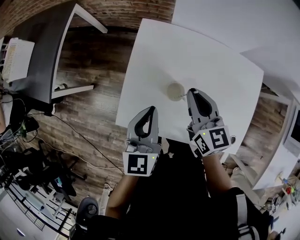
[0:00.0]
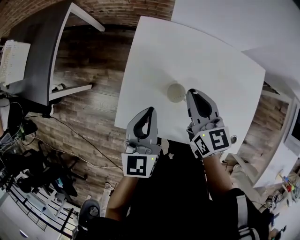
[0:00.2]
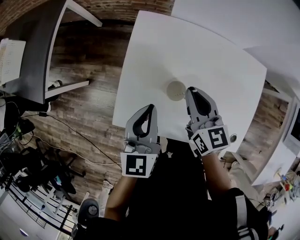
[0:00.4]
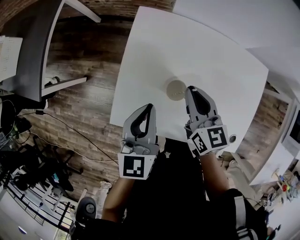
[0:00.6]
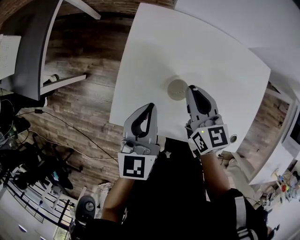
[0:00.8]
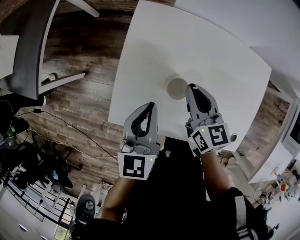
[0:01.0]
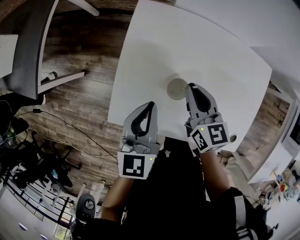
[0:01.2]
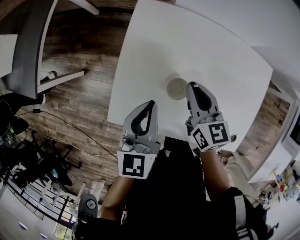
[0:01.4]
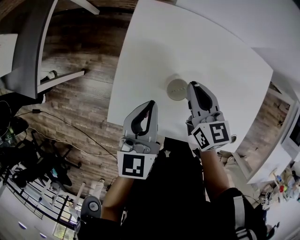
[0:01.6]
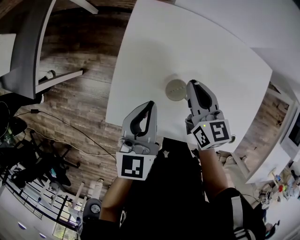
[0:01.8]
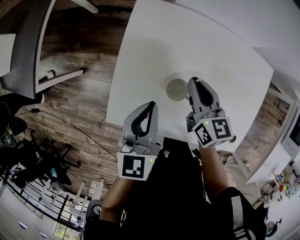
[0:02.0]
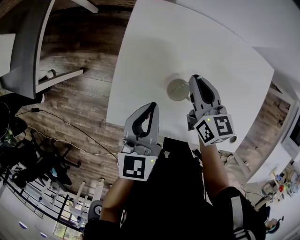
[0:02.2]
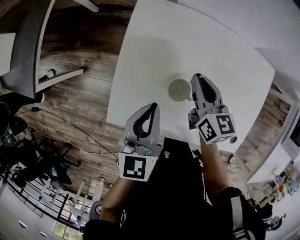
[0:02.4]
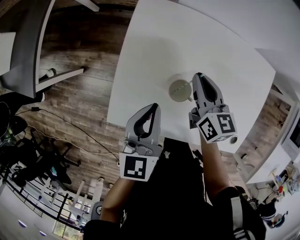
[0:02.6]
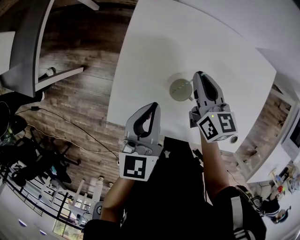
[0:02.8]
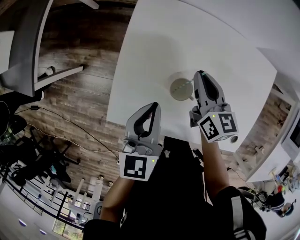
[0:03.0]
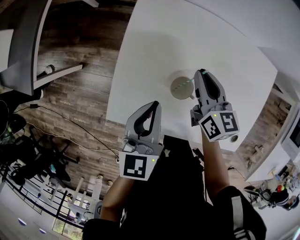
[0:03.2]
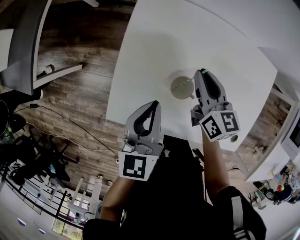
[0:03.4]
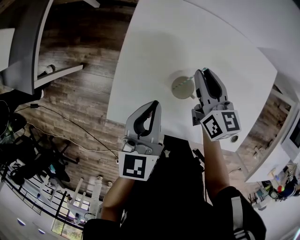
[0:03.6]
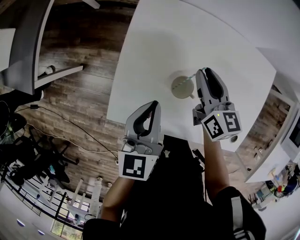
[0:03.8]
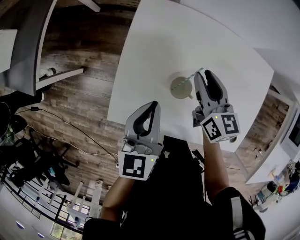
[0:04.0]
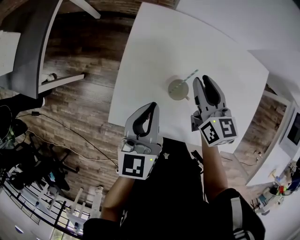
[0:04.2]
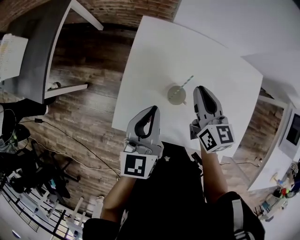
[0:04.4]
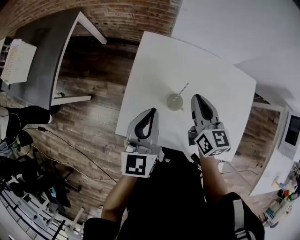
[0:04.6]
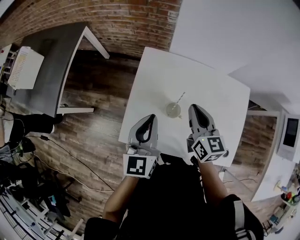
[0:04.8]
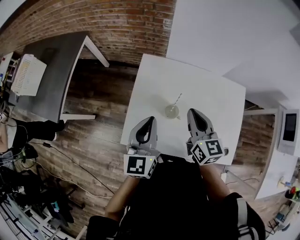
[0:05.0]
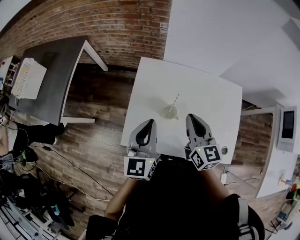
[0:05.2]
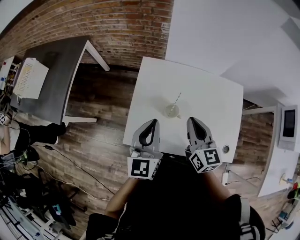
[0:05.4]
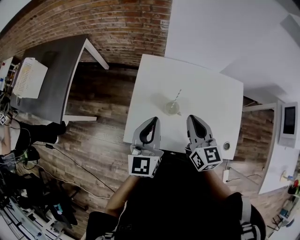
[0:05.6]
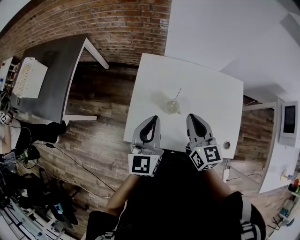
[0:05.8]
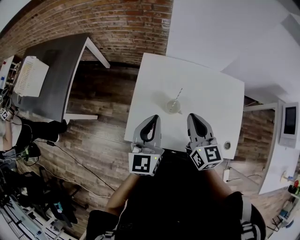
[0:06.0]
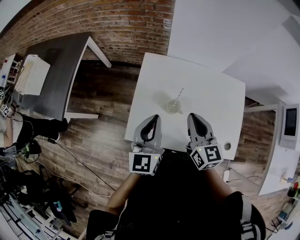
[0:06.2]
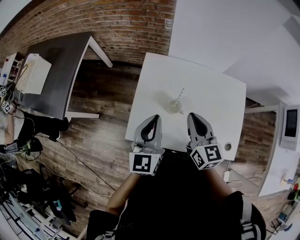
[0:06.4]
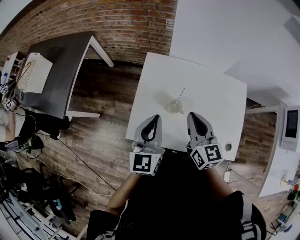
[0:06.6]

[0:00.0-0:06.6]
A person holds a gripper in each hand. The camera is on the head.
0:00.0 to 0:01.6: The right gripper shifts about 10 cm downward; the left gripper moves downward, about 5 cm.
0:01.6 to 0:03.2: The grippers make only small movements.
0:03.2 to 0:05.0: The left gripper travels upward by about 15 cm; the right gripper shifts about 15 cm upward and backward, and opens, then closes again.
0:05.0 to 0:06.6: The right gripper travels backward by some 5 cm.

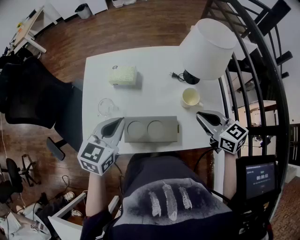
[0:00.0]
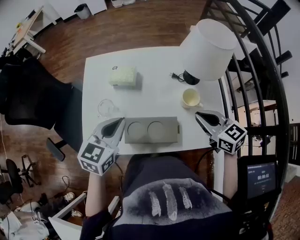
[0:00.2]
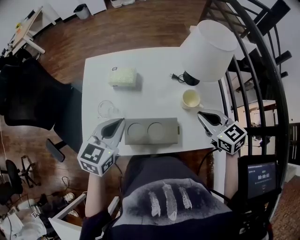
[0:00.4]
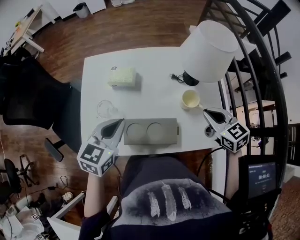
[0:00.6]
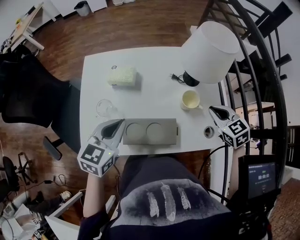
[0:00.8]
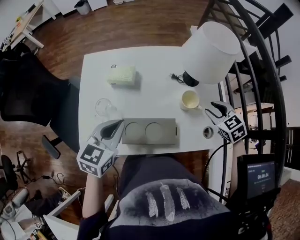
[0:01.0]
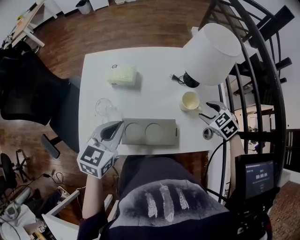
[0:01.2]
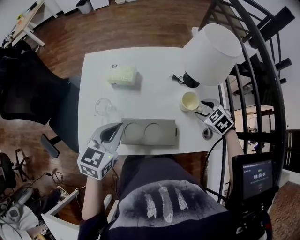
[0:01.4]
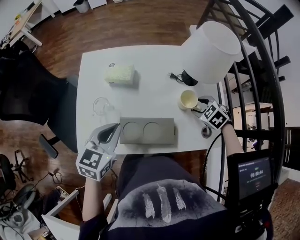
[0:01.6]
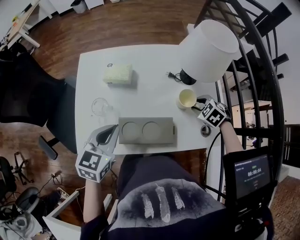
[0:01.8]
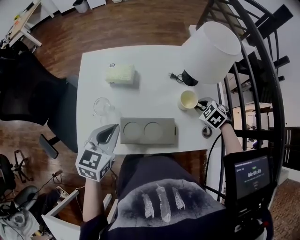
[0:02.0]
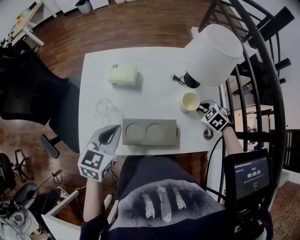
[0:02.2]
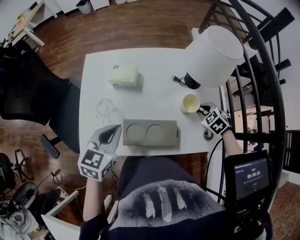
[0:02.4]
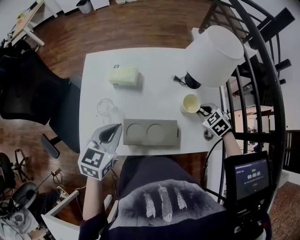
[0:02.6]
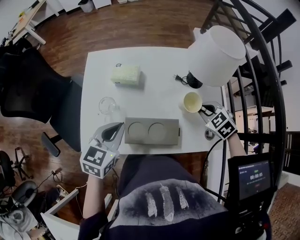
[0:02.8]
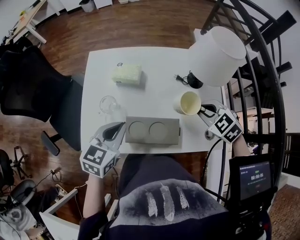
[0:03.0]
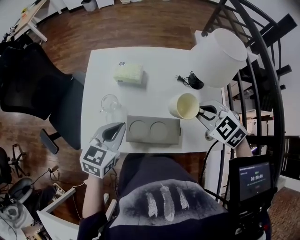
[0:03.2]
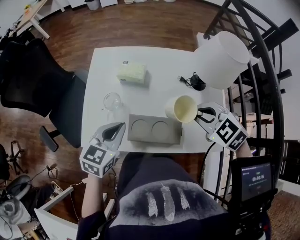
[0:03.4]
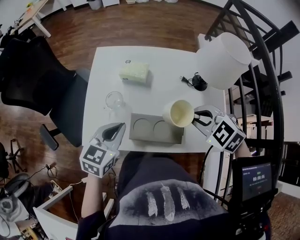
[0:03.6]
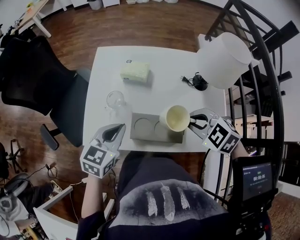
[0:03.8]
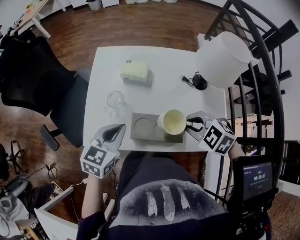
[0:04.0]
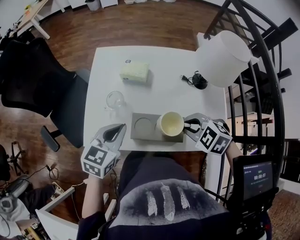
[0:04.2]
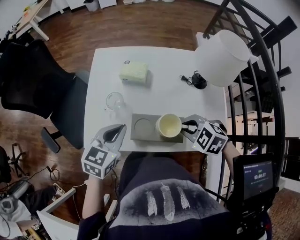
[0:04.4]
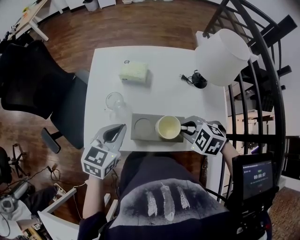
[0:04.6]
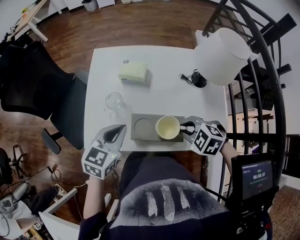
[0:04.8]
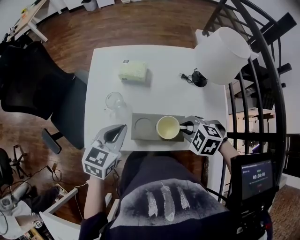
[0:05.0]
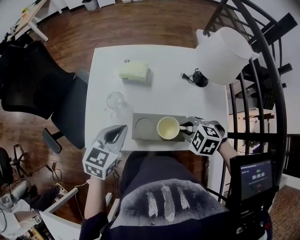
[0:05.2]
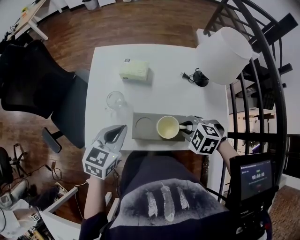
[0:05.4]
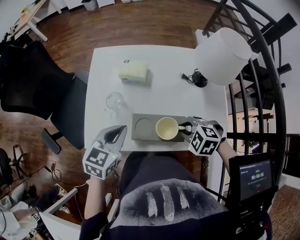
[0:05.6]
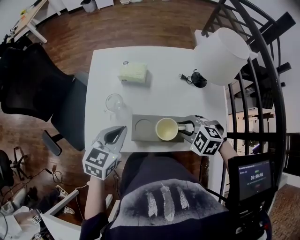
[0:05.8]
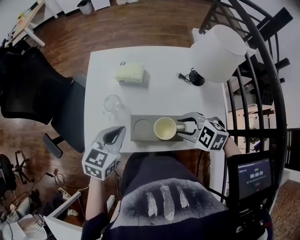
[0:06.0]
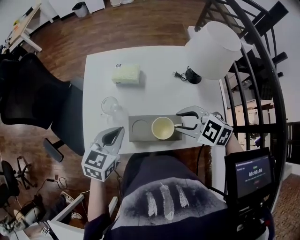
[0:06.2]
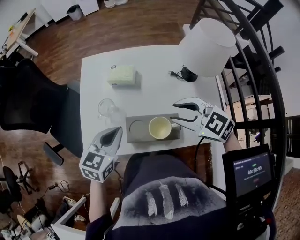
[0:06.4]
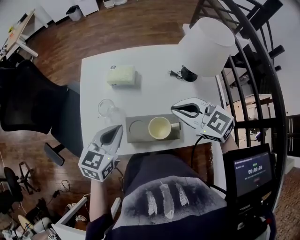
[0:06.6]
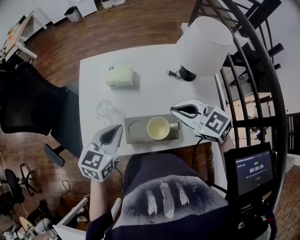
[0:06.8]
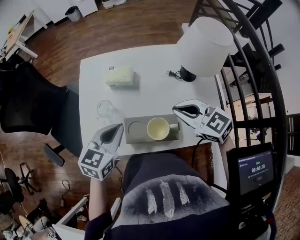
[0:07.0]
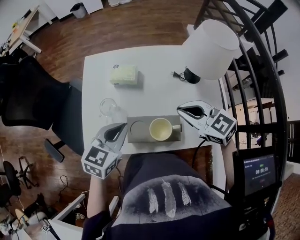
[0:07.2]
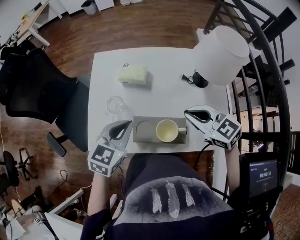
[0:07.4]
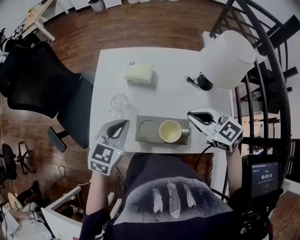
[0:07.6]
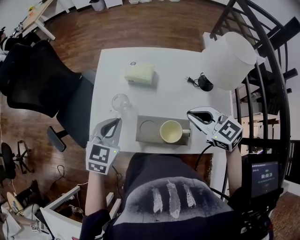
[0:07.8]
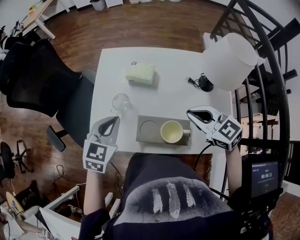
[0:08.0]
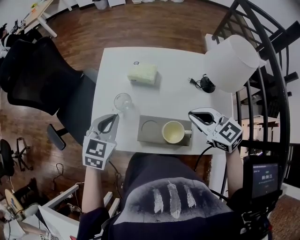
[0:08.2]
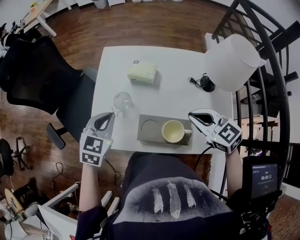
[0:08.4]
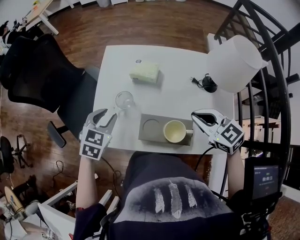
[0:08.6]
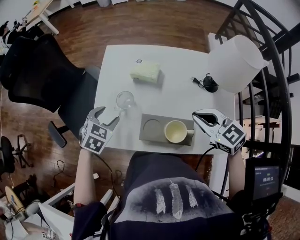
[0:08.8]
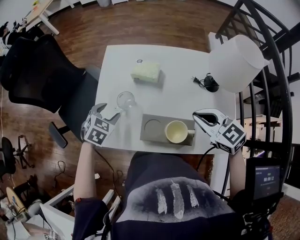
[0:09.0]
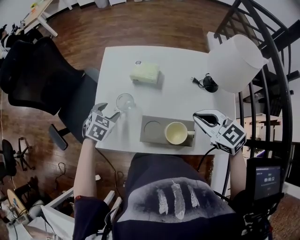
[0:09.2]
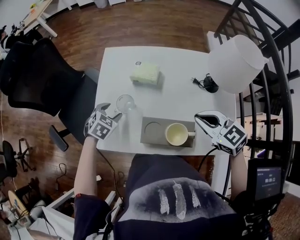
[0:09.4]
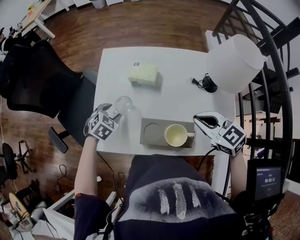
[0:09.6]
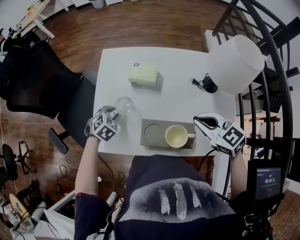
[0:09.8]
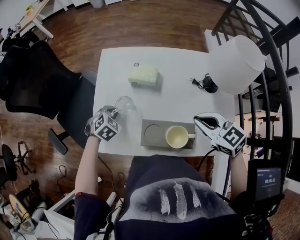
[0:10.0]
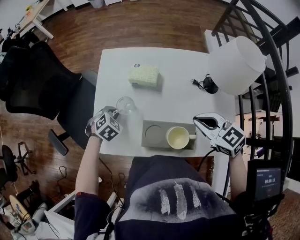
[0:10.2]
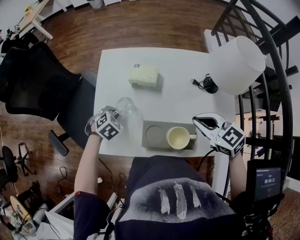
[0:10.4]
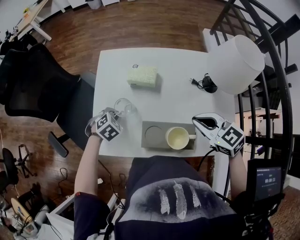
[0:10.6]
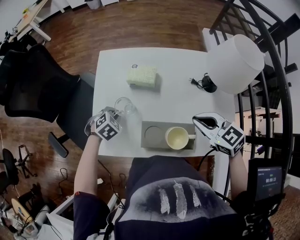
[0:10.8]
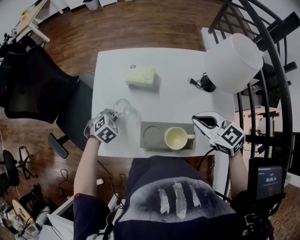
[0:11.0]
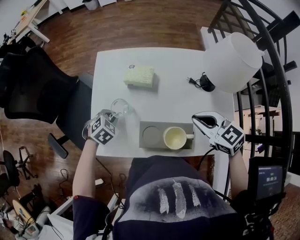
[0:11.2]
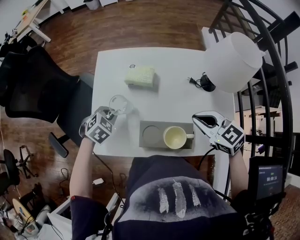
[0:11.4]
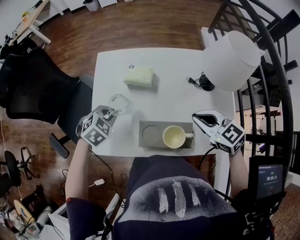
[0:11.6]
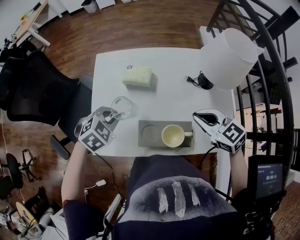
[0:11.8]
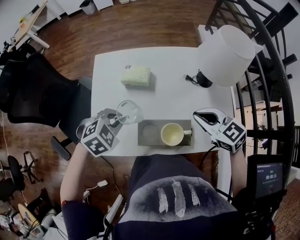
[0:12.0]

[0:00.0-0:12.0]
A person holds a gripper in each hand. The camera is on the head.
0:00.0 to 0:01.6: The right gripper shifts some 15 cm downward and forward, points its fingers some 40 degrees further downward, and opens.
0:01.6 to 0:03.0: The right gripper goes about 15 cm upward and to the left, and closes.
0:03.0 to 0:04.4: The right gripper moves to the left and backward, roughly 15 cm.
0:04.4 to 0:06.0: The right gripper opens.
0:06.0 to 0:07.6: The right gripper is displaced upward and forward by roughly 10 cm, rotates approximately 30 degrees, and closes.
0:07.6 to 0:09.0: The left gripper travels downward, to the left and forward by approximately 15 cm, rotates roughly 20 degrees, and opens its fingers.
0:09.0 to 0:10.4: The left gripper is displaced downward by some 5 cm, swivels approximately 20 degrees, and closes.
0:10.4 to 0:12.0: The left gripper goes some 15 cm upward and to the right.

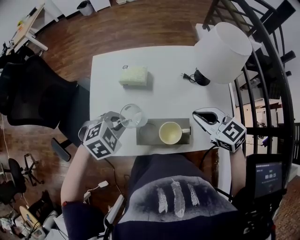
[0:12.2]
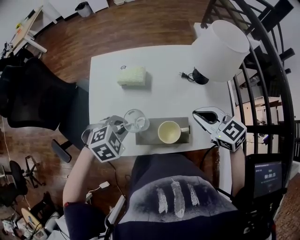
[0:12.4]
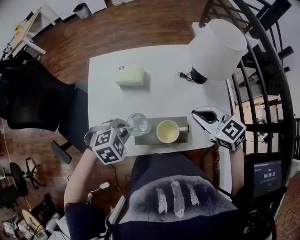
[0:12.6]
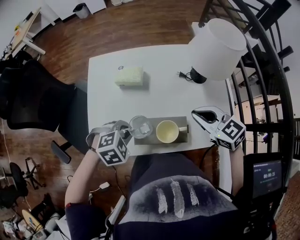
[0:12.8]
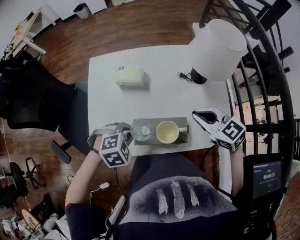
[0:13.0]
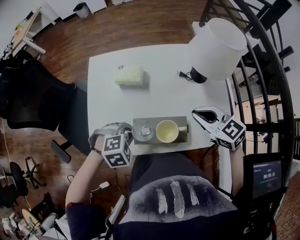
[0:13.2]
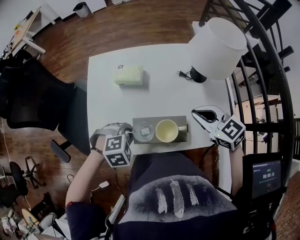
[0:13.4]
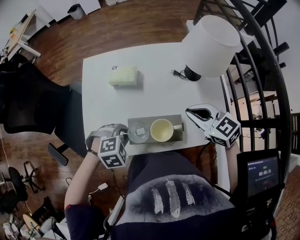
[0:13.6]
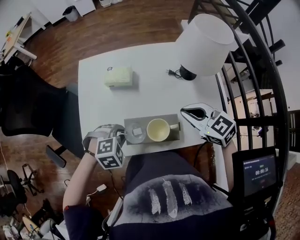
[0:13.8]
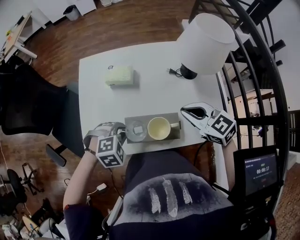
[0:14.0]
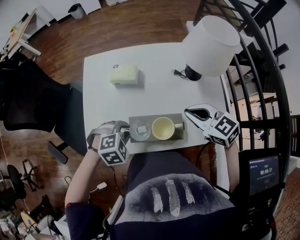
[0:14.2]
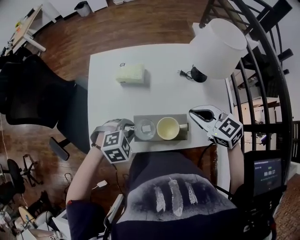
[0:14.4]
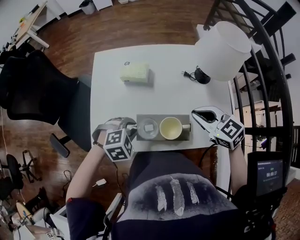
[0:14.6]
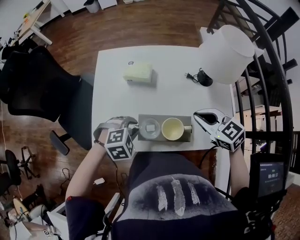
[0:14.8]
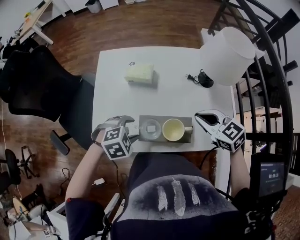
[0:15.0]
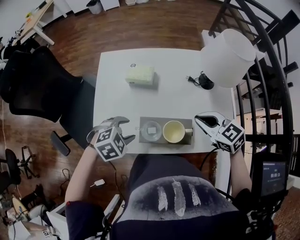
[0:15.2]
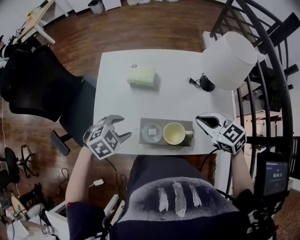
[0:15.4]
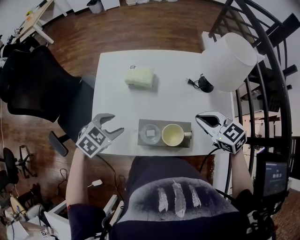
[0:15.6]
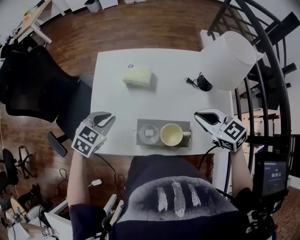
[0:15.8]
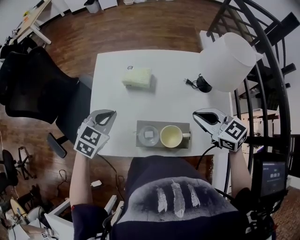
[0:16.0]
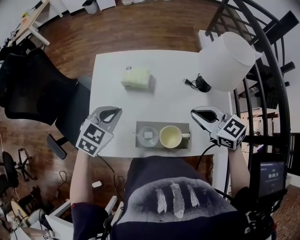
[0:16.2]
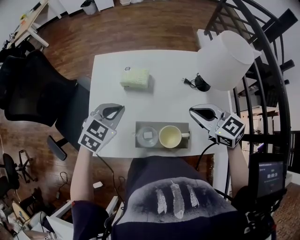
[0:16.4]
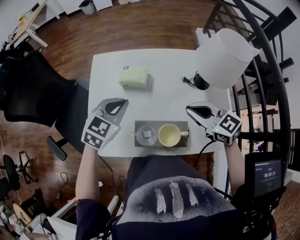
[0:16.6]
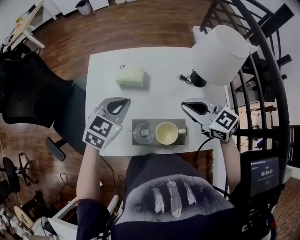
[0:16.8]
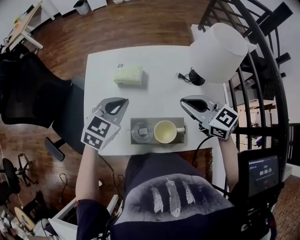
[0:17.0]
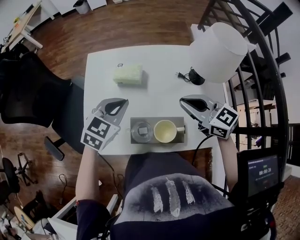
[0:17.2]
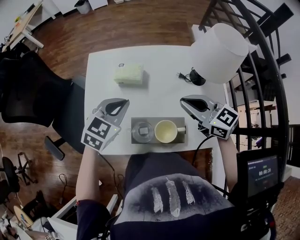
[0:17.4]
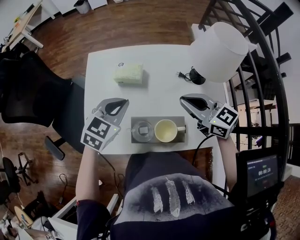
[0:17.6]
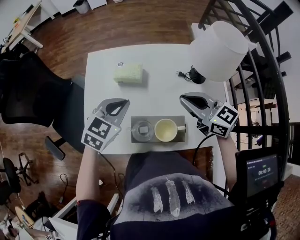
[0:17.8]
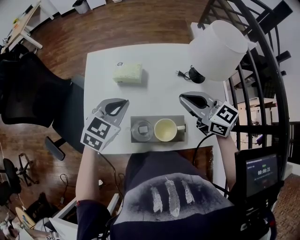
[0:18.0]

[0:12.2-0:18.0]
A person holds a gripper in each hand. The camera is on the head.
0:12.2 to 0:13.6: The left gripper heads downward and backward, covering some 5 cm.
0:13.6 to 0:15.0: The left gripper opens its fingers.
0:15.0 to 0:16.6: The right gripper moves about 5 cm. Meanwhile the left gripper heads forward and upward, covering roughly 15 cm, tips its fingers upward by about 30 degrees, and closes.
0:16.6 to 0:18.0: The grippers stay close to where they were, moving slightly.
